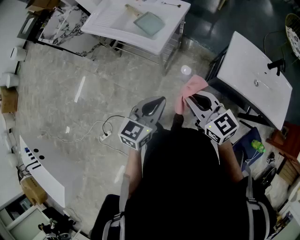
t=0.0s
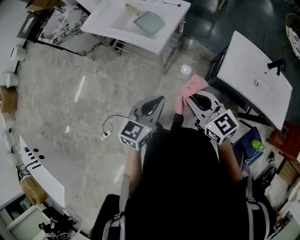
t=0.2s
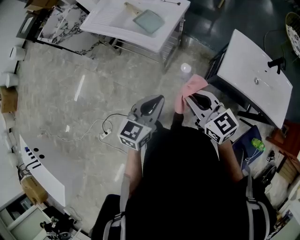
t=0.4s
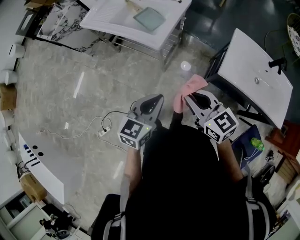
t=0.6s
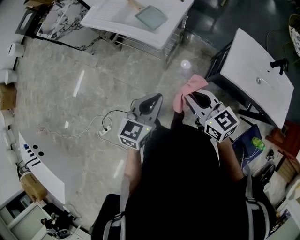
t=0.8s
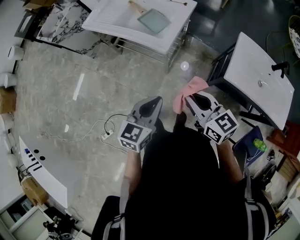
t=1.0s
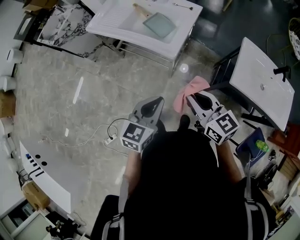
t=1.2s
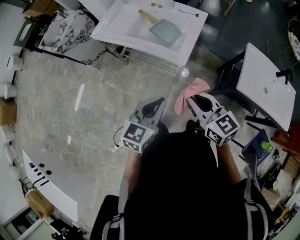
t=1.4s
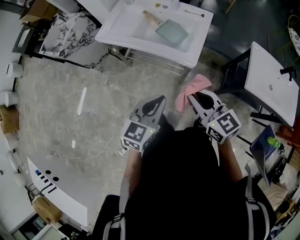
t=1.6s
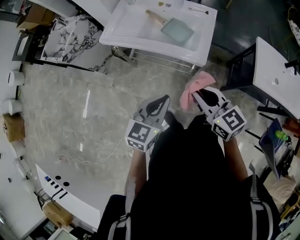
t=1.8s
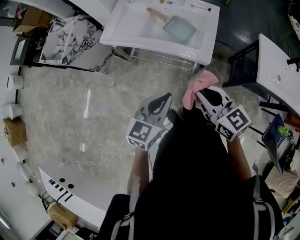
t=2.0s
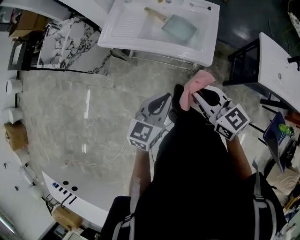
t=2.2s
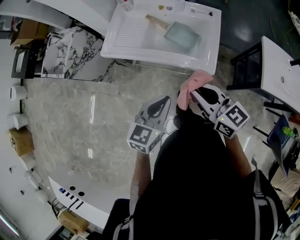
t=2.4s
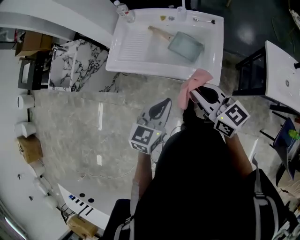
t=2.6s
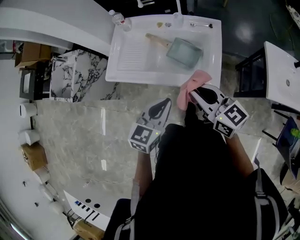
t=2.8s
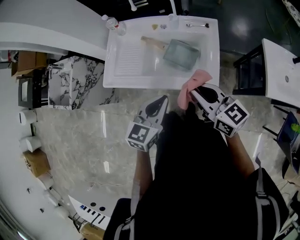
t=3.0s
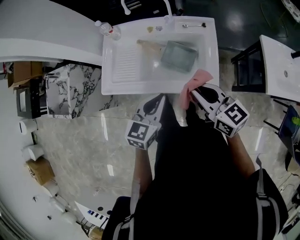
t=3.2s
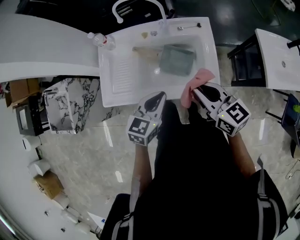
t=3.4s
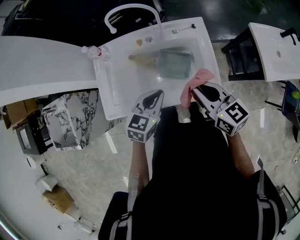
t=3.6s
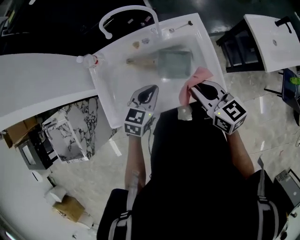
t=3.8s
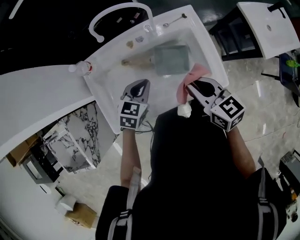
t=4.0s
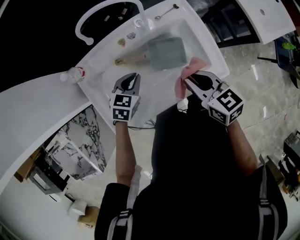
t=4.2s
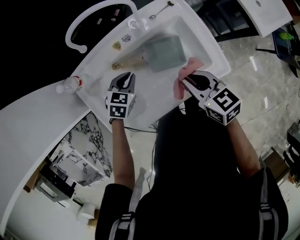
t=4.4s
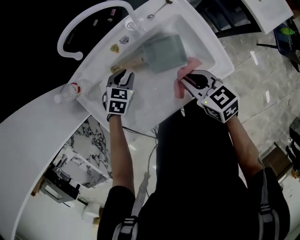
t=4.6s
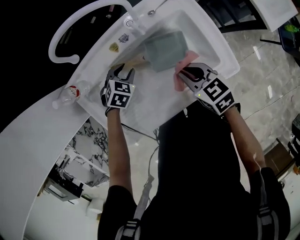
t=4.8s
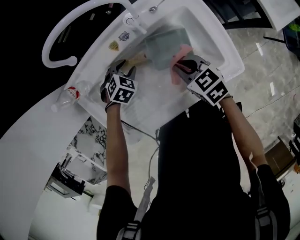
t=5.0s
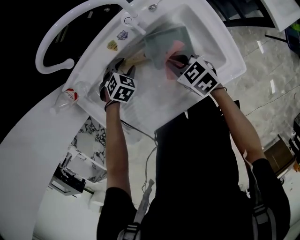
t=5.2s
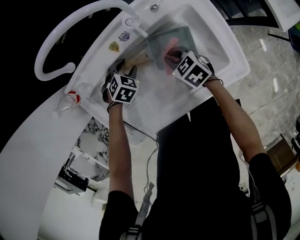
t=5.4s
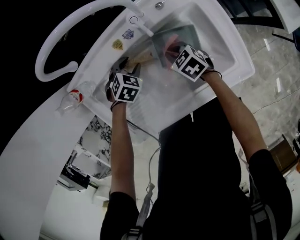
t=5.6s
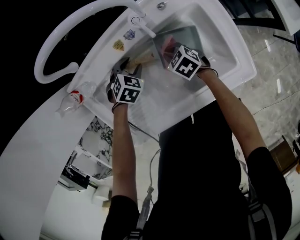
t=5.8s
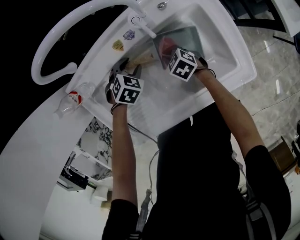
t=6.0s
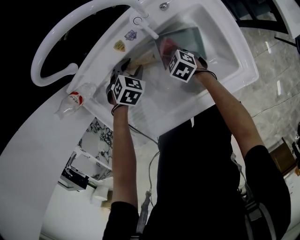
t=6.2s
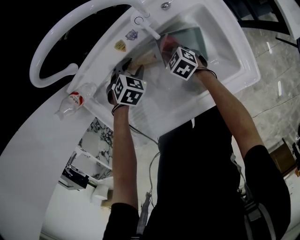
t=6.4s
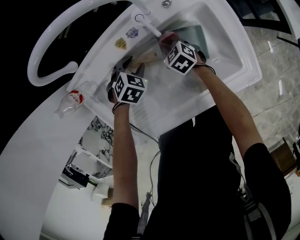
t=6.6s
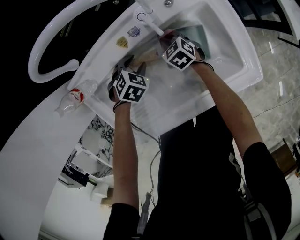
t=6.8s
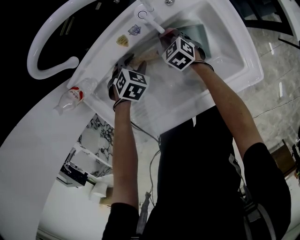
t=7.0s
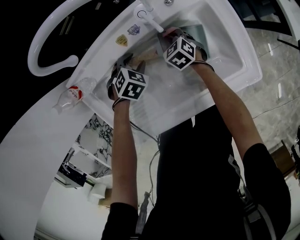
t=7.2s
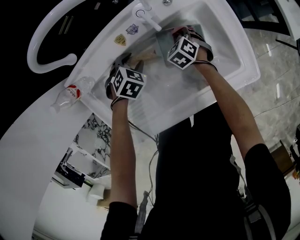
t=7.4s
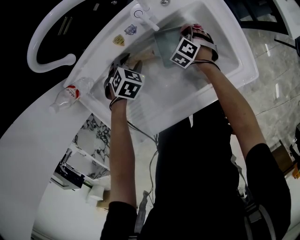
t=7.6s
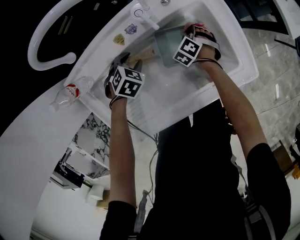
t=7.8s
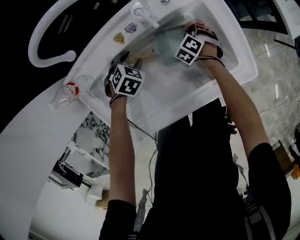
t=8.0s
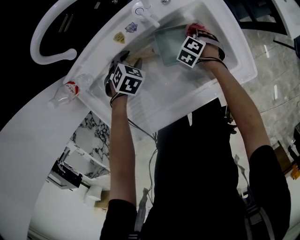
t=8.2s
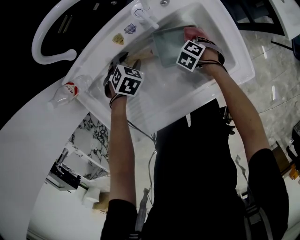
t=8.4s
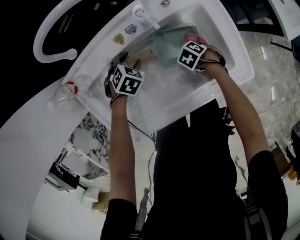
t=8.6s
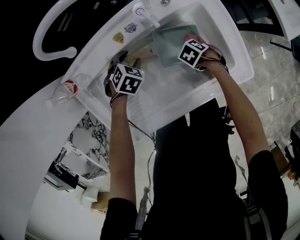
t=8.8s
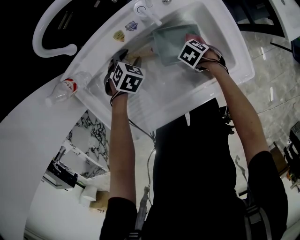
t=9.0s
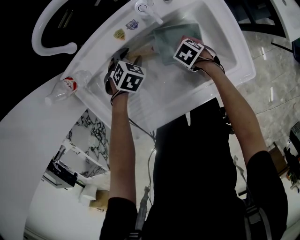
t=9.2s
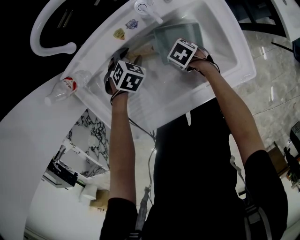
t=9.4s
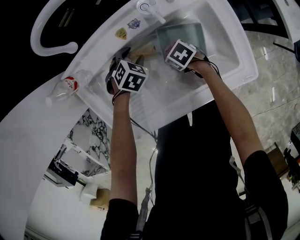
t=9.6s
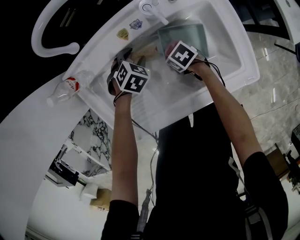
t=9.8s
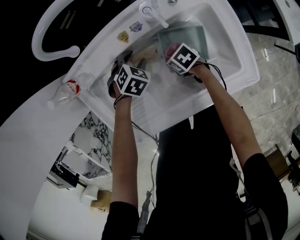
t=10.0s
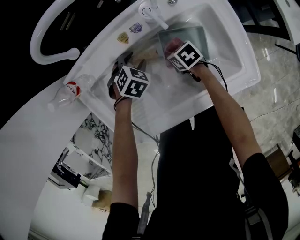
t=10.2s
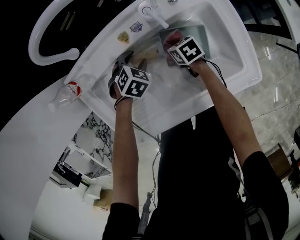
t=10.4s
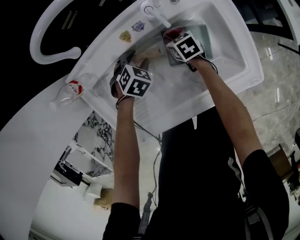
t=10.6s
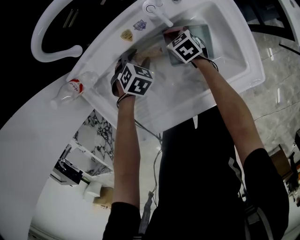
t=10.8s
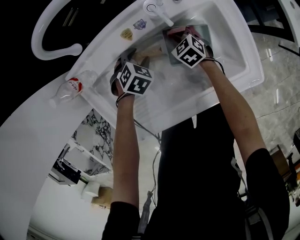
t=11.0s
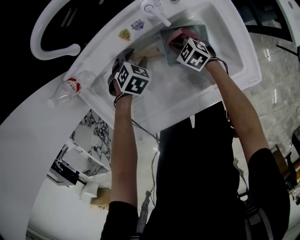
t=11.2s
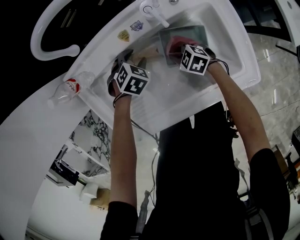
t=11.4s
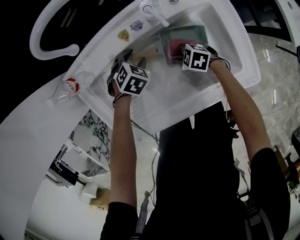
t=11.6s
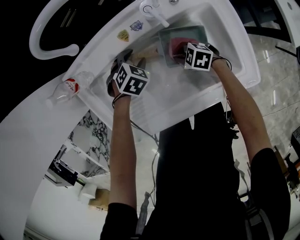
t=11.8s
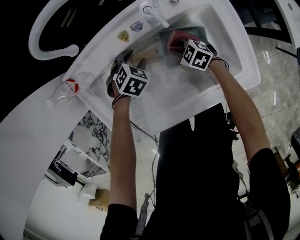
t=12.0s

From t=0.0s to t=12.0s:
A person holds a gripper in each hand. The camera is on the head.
From t=0.0s to t=1.6s: Both grippers move to the left and forward, about 25 cm.
From t=1.6s to t=3.0s: The two grippers go about 25 cm forward.
From t=3.0s to t=4.4s: The left gripper ends up roughly 40 cm from where it was, and rotates roughly 50 degrees. Meanwhile the right gripper moves about 20 cm, and rotates some 40 degrees.
From t=4.4s to t=6.0s: The right gripper goes some 30 cm downward, and turns by about 30 degrees; the left gripper travels downward and forward by roughly 15 cm, changes its angle by approximately 20 degrees, and opens.
From t=6.0s to t=7.6s: The right gripper ends up approximately 15 cm from where it was, and swivels roughly 40 degrees.
From t=7.6s to t=9.0s: The right gripper shifts by some 10 cm, and changes its angle by approximately 40 degrees.
From t=9.0s to t=10.4s: The right gripper moves some 15 cm, and tips its fingers upward by some 30 degrees.
From t=10.4s to t=12.0s: The right gripper rotates around the line of its fingers by roughly 40 degrees, counterclockwise from behind.

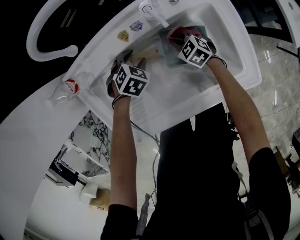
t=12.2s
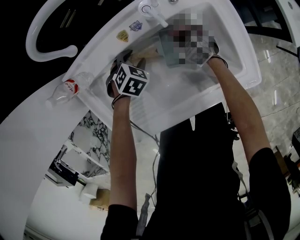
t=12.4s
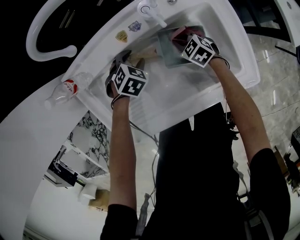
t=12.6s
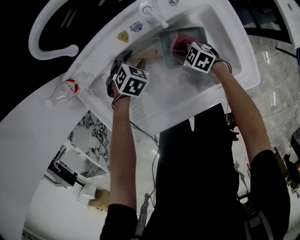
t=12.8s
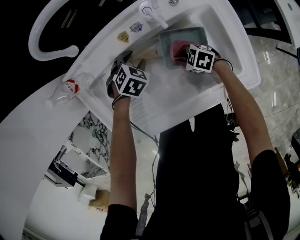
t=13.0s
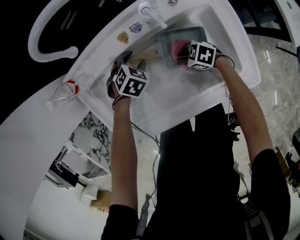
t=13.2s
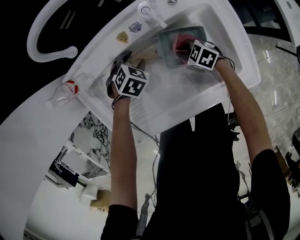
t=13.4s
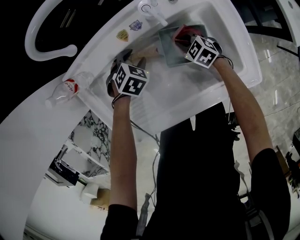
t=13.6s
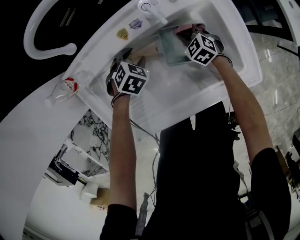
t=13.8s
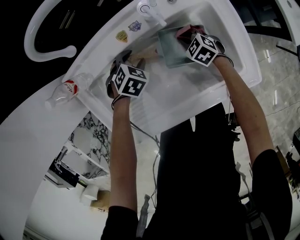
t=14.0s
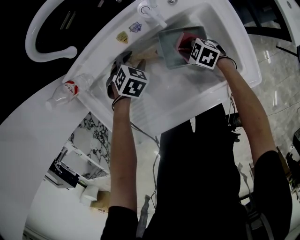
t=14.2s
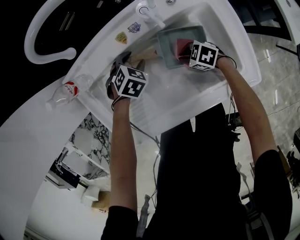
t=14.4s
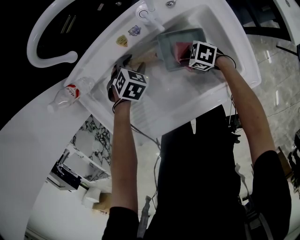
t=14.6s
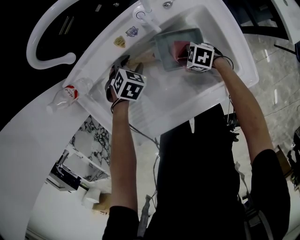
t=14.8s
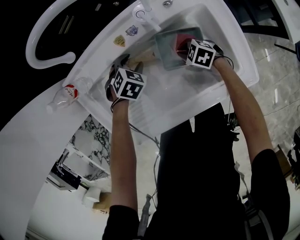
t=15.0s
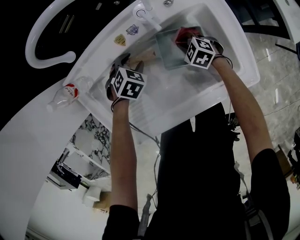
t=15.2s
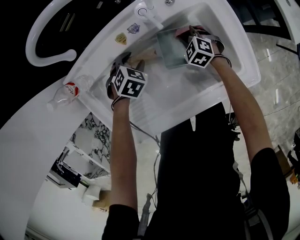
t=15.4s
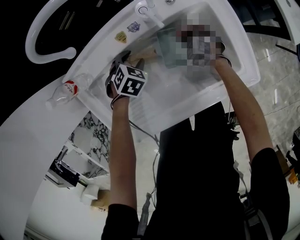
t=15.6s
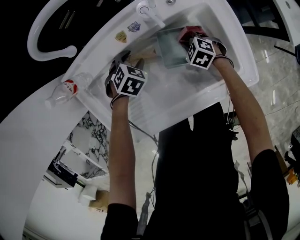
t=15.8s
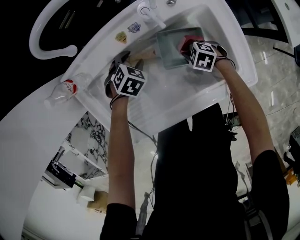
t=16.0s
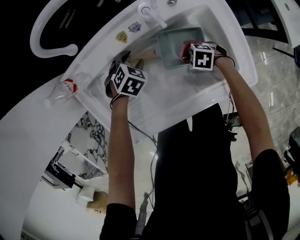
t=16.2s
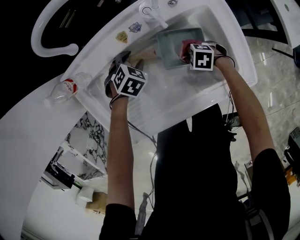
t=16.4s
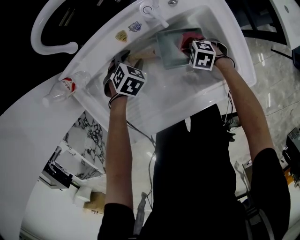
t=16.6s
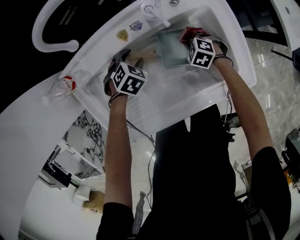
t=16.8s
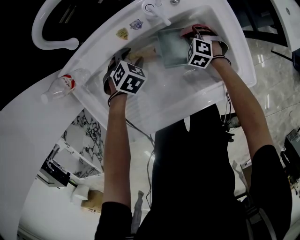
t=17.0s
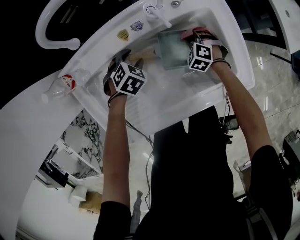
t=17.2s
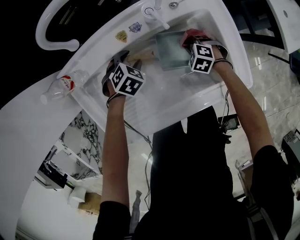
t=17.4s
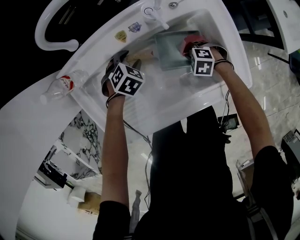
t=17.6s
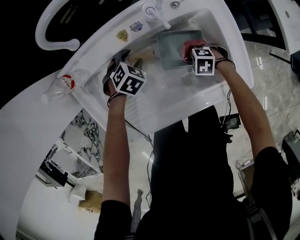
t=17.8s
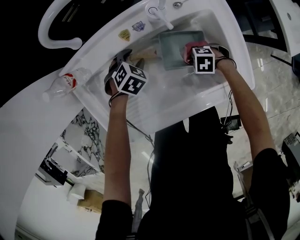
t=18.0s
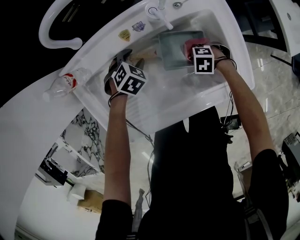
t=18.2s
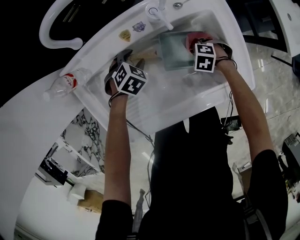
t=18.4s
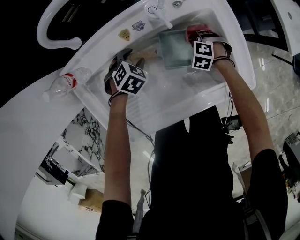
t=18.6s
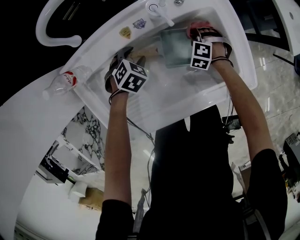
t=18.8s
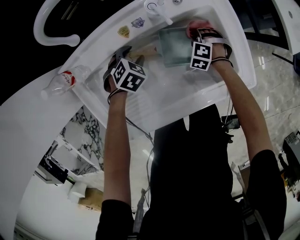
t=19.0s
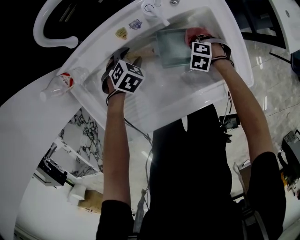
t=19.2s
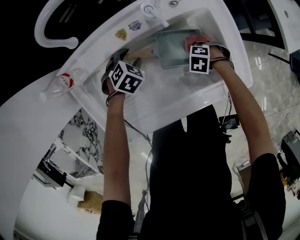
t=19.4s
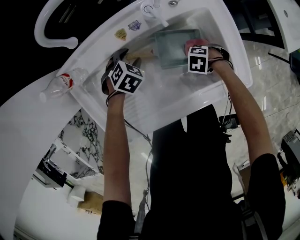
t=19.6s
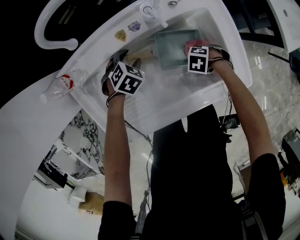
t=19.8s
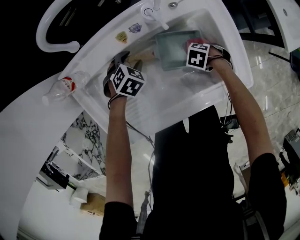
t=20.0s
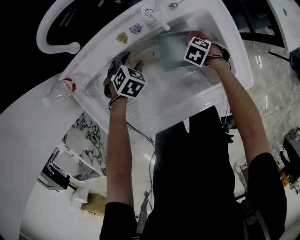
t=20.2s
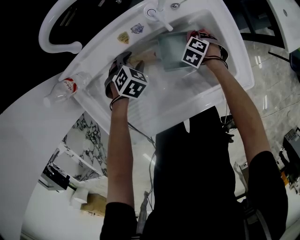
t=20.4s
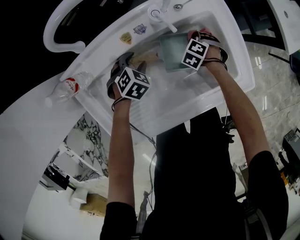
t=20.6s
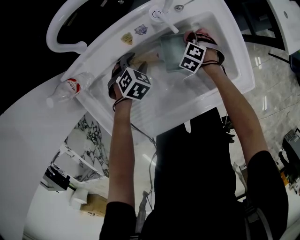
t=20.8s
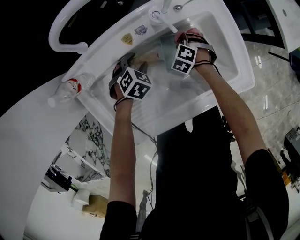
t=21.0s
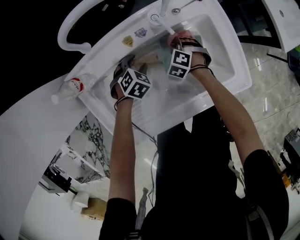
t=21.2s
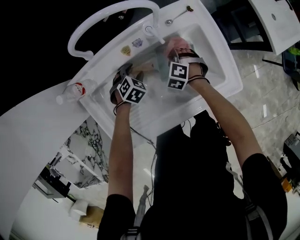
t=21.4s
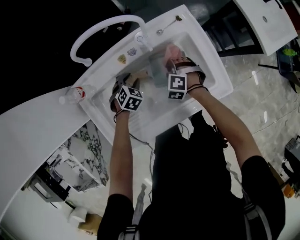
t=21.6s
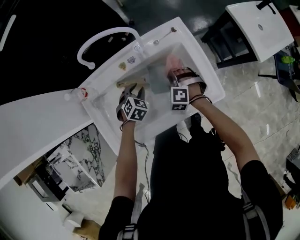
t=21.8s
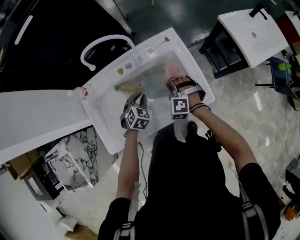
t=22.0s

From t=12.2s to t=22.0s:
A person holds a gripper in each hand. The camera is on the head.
From t=17.8s to t=19.2s: The right gripper rotates approximately 20 degrees.
From t=19.2s to t=20.6s: The right gripper ends up roughly 5 cm from where it was, and swivels some 20 degrees.
From t=20.6s to t=22.0s: The right gripper heads upward, covering some 25 cm, and swivels approximately 40 degrees; the left gripper ends up some 20 cm from where it was, and closes.

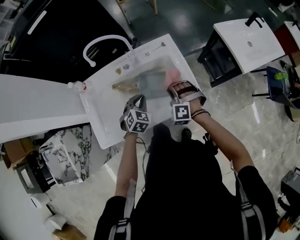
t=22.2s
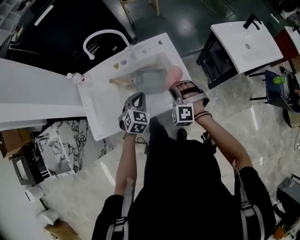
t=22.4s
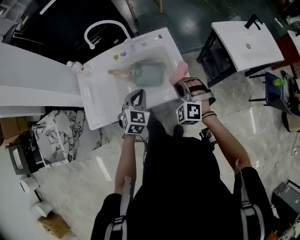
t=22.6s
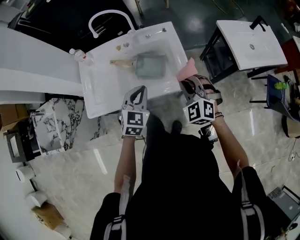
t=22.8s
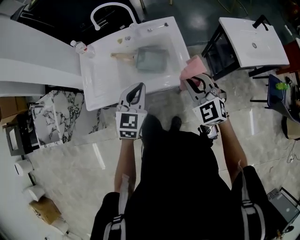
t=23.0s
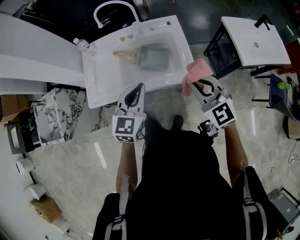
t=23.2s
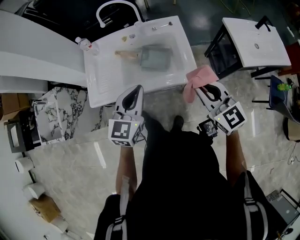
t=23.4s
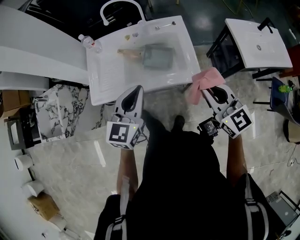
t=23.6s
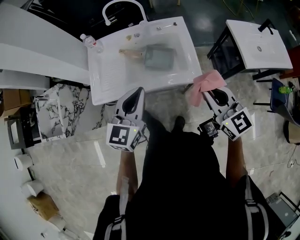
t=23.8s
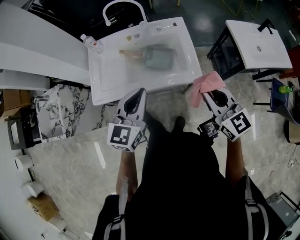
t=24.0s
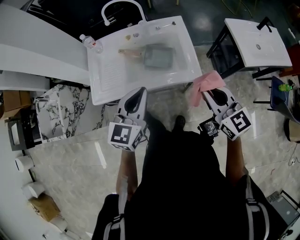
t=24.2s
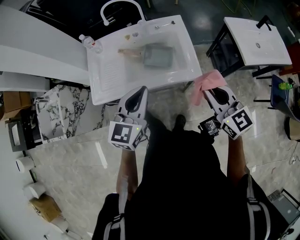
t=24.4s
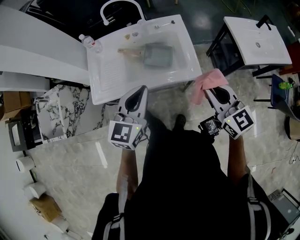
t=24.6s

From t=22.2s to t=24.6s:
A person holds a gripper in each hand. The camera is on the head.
From t=22.2s to t=23.4s: The right gripper shifts approximately 30 cm upward, backward and to the right, and tips its fingers upward by some 30 degrees. The left gripper goes some 30 cm upward and backward, and tilts its fingers about 30 degrees upward.
From t=23.4s to t=24.6s: The grippers stay close to where they were, moving slightly.
